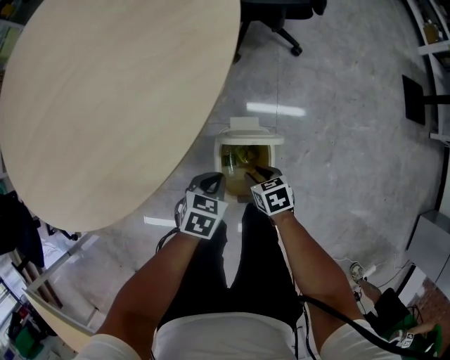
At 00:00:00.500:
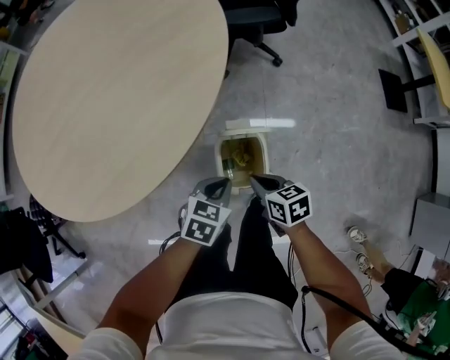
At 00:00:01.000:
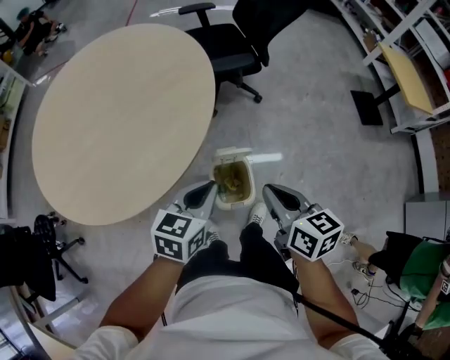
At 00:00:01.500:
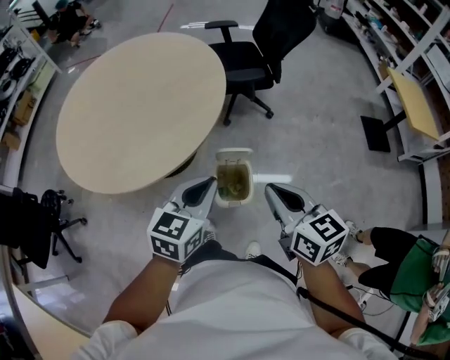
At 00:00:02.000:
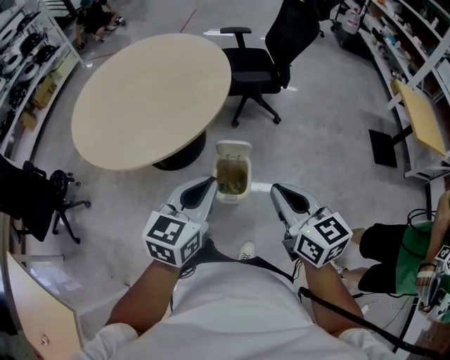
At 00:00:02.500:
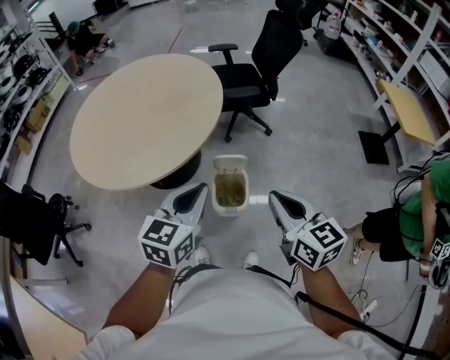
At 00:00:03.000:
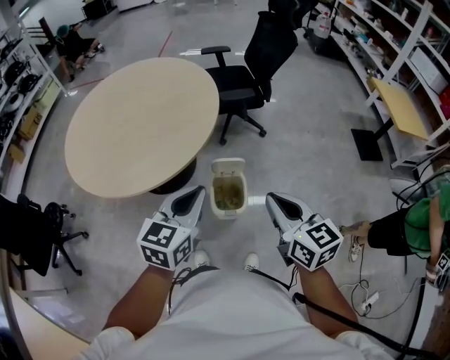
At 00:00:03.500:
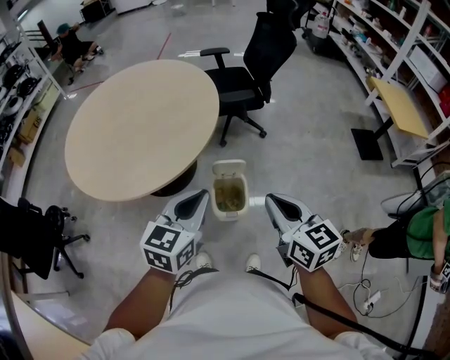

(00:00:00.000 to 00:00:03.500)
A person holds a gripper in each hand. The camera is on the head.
00:00:00.000 - 00:00:02.000: The two grippers go some 50 cm upward. The left gripper points its fingers approximately 40 degrees further upward. Meanwhile the right gripper tips its fingers upward by roughly 50 degrees, and closes.
00:00:02.000 - 00:00:03.500: The grippers make only small movements.

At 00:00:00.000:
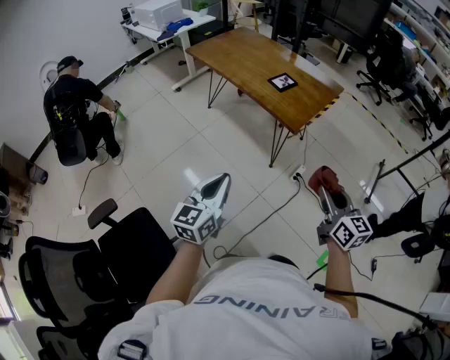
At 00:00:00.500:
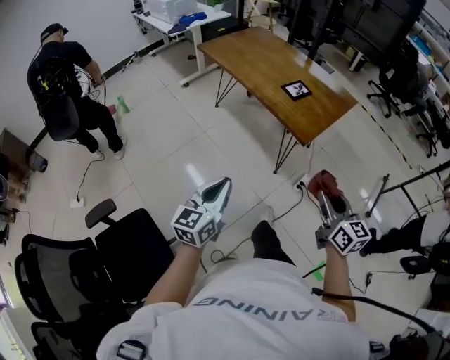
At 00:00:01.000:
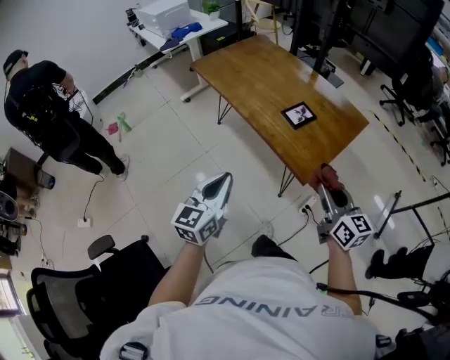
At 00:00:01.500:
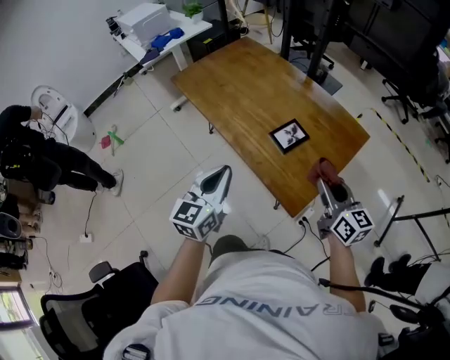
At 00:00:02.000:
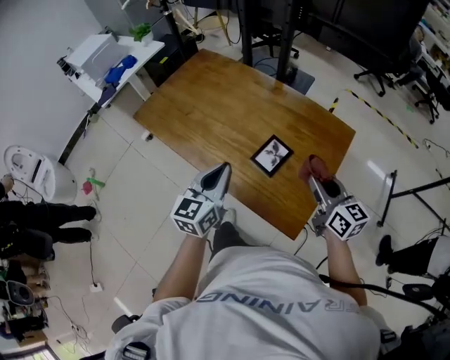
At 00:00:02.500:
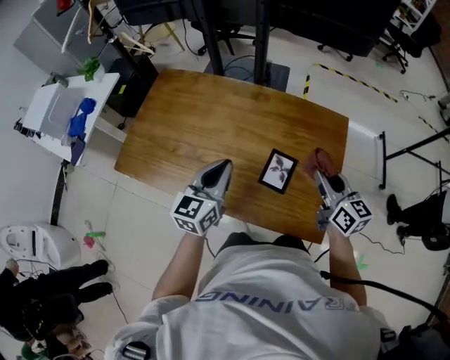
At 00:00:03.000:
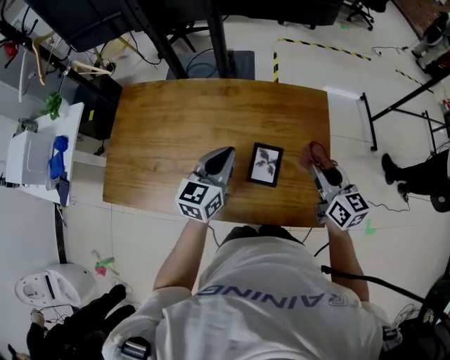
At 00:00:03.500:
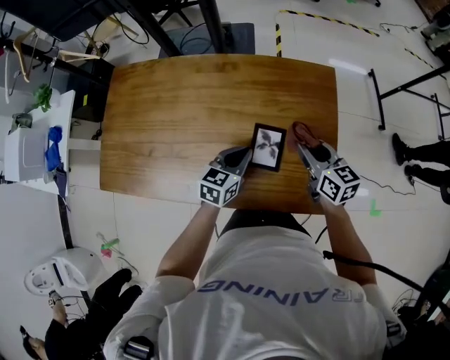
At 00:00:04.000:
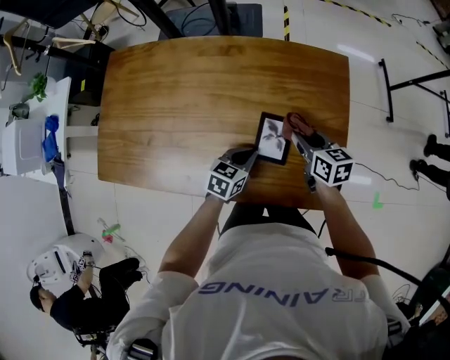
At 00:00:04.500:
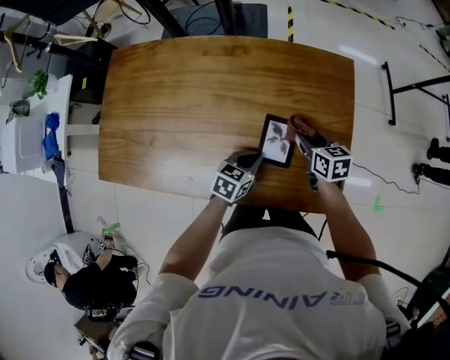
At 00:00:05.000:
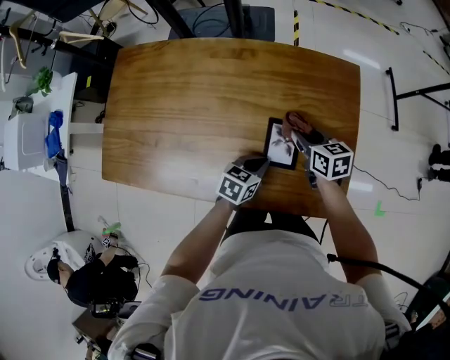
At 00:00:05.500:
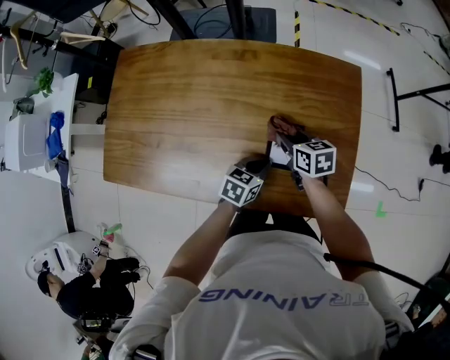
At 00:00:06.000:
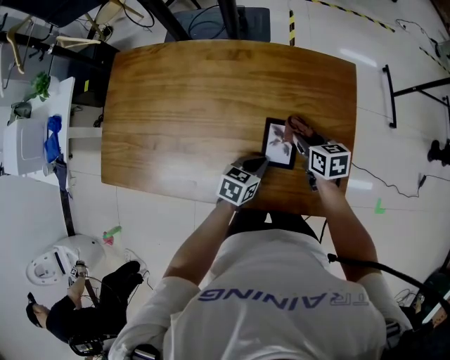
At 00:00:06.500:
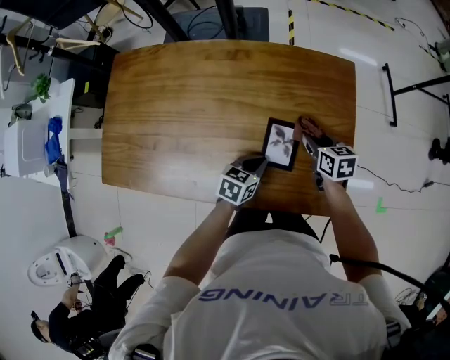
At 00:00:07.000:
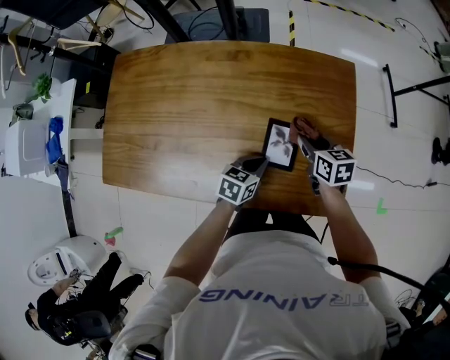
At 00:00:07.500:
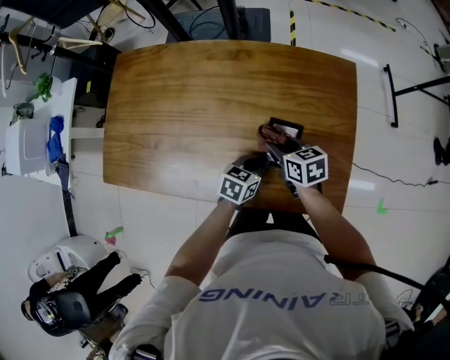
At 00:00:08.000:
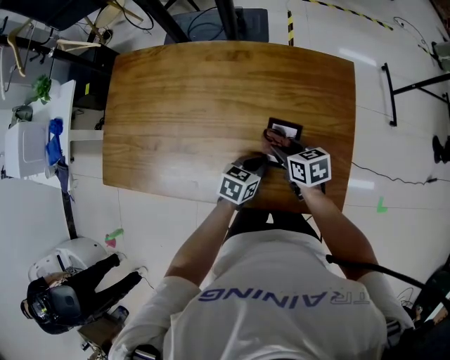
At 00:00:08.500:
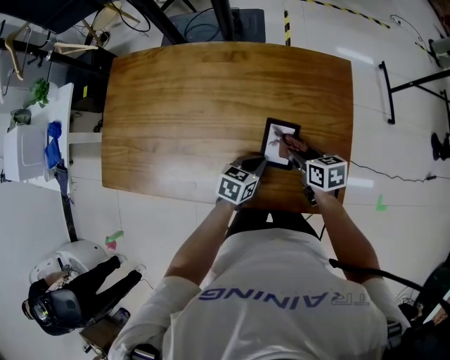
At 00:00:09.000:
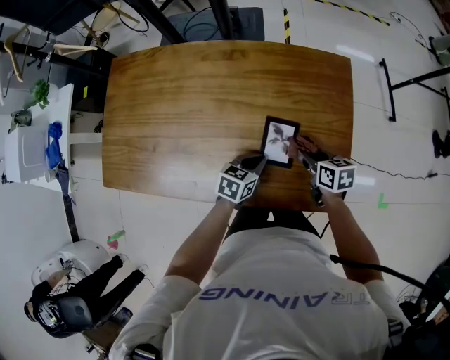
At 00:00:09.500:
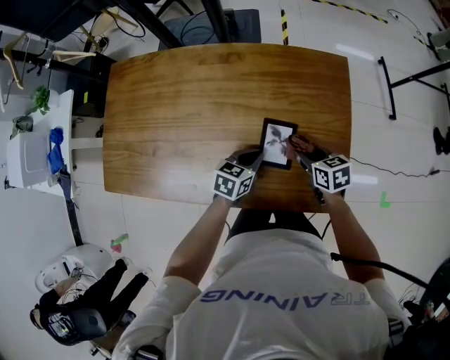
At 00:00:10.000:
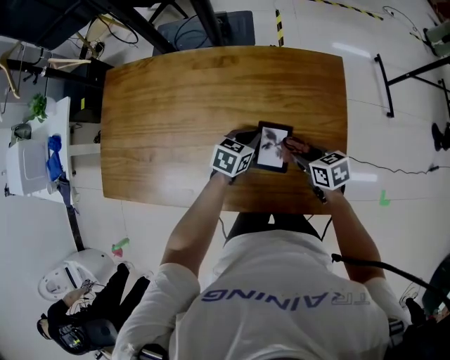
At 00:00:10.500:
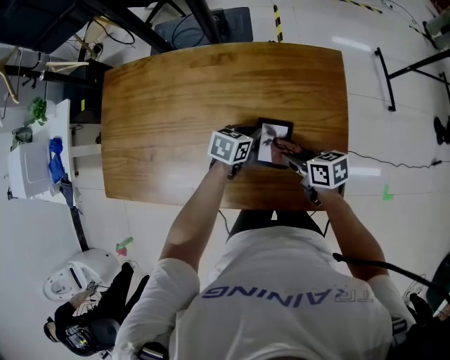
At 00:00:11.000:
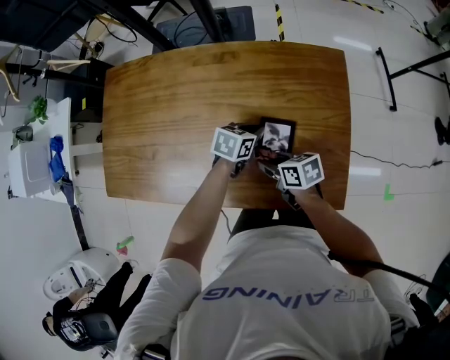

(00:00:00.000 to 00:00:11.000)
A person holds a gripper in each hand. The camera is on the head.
00:00:00.000 - 00:00:02.000: The two grippers travel together, forward, about 60 cm.
00:00:02.000 - 00:00:03.500: The right gripper changes place by about 15 cm, and changes its angle by roughly 30 degrees, while the left gripper ends up roughly 25 cm from where it was, and turns by roughly 50 degrees.
00:00:03.500 - 00:00:05.500: The right gripper shifts roughly 15 cm downward and to the left, and changes its angle by some 20 degrees. Meanwhile the left gripper moves downward, roughly 10 cm.
00:00:05.500 - 00:00:07.500: The right gripper moves about 10 cm to the right and comes back.
00:00:07.500 - 00:00:09.000: The right gripper moves to the right, some 10 cm.
00:00:09.000 - 00:00:11.000: The right gripper moves approximately 15 cm. The left gripper ends up roughly 10 cm from where it was.

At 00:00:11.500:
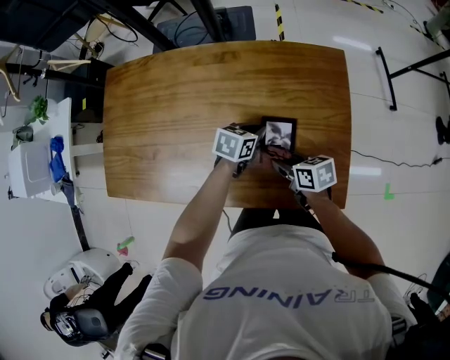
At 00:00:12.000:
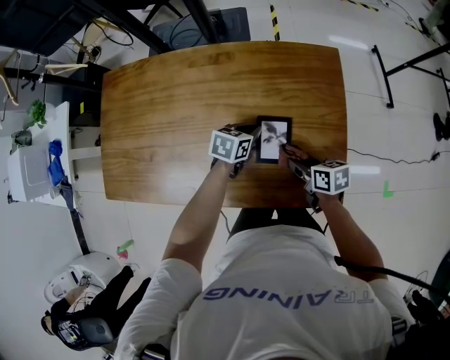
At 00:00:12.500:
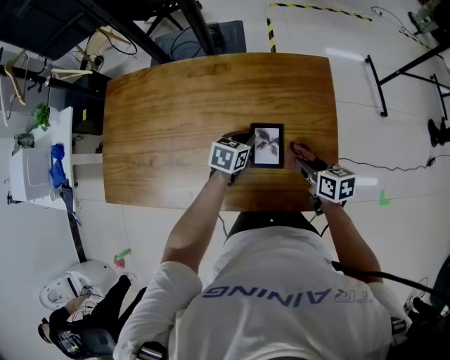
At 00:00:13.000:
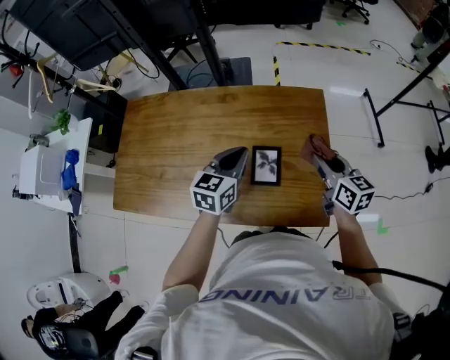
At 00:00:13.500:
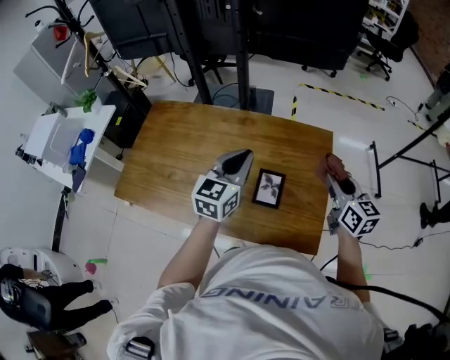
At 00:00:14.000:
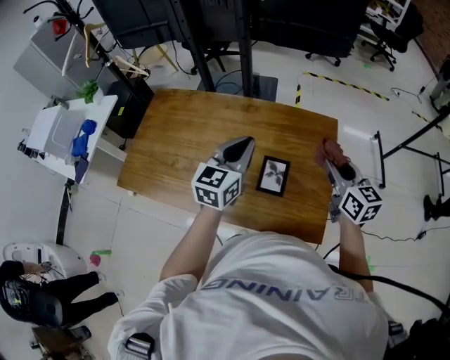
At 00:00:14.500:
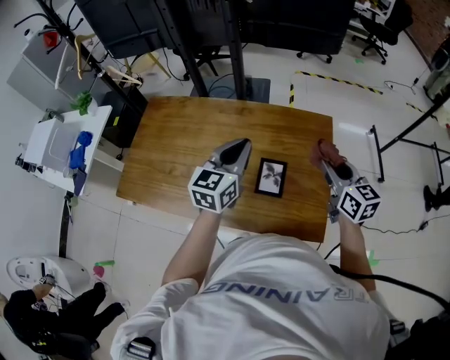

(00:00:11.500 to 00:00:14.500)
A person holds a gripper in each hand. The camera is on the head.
00:00:11.500 - 00:00:13.000: The left gripper heads upward, covering approximately 20 cm, and rotates some 30 degrees. Meanwhile the right gripper goes approximately 25 cm upward and to the right, and changes its angle by about 40 degrees.
00:00:13.000 - 00:00:14.500: Both grippers move upward, about 10 cm.

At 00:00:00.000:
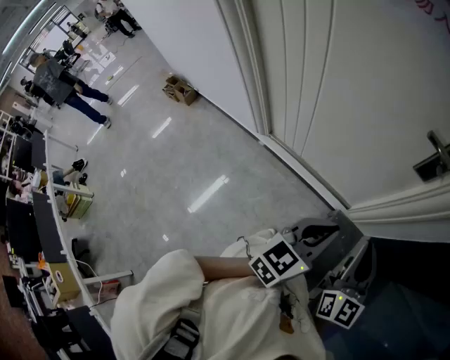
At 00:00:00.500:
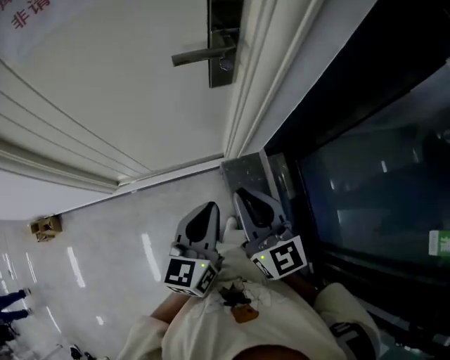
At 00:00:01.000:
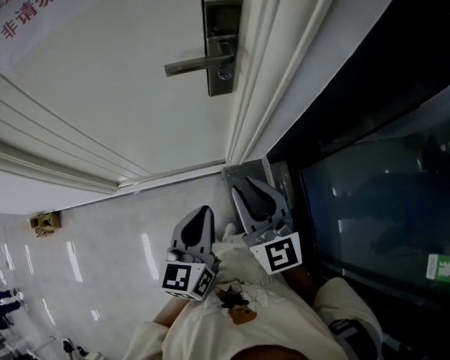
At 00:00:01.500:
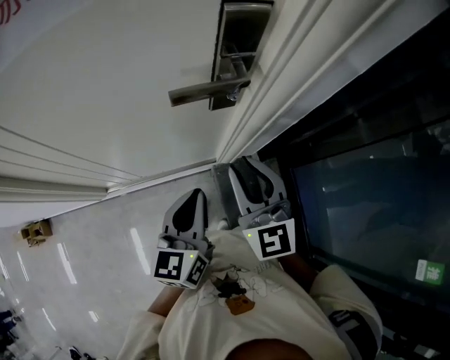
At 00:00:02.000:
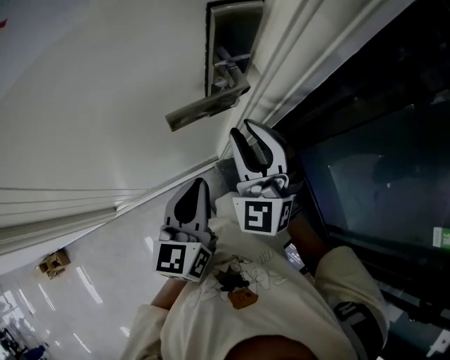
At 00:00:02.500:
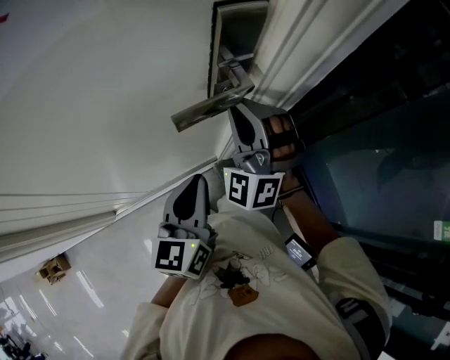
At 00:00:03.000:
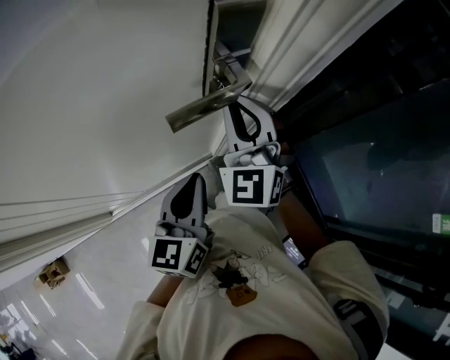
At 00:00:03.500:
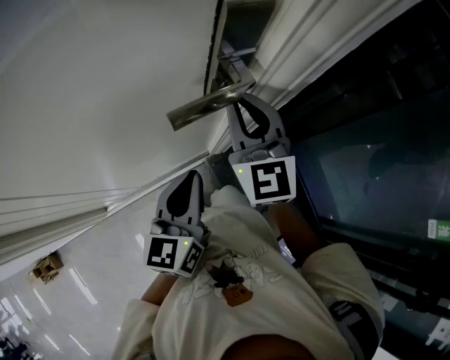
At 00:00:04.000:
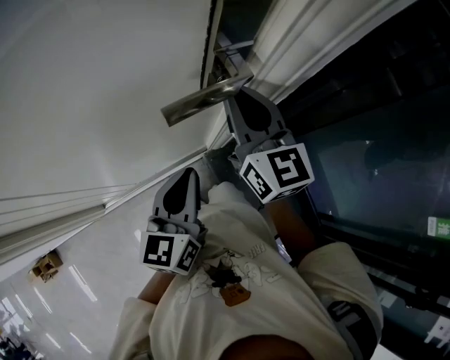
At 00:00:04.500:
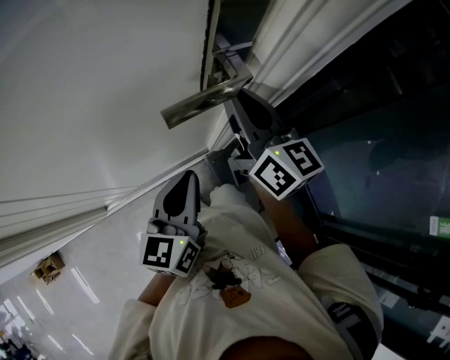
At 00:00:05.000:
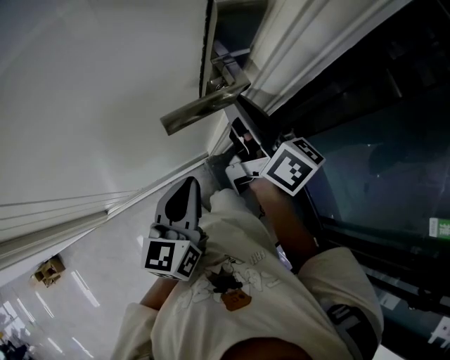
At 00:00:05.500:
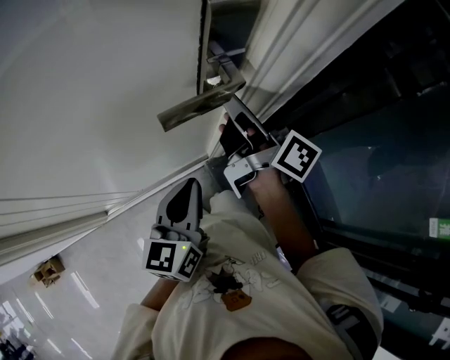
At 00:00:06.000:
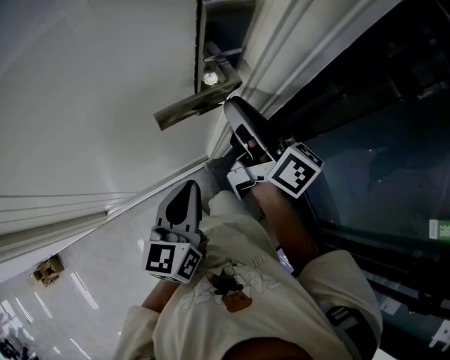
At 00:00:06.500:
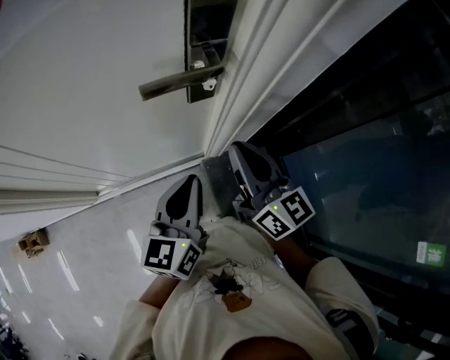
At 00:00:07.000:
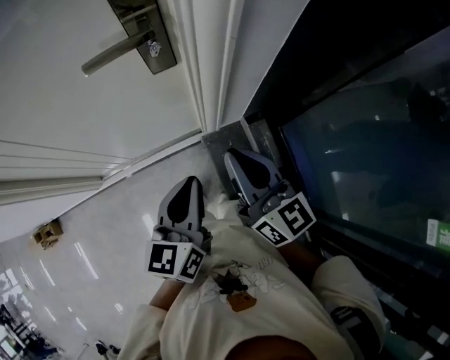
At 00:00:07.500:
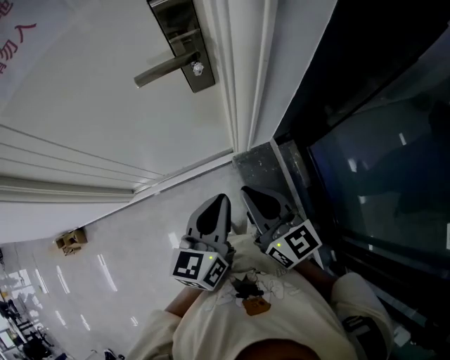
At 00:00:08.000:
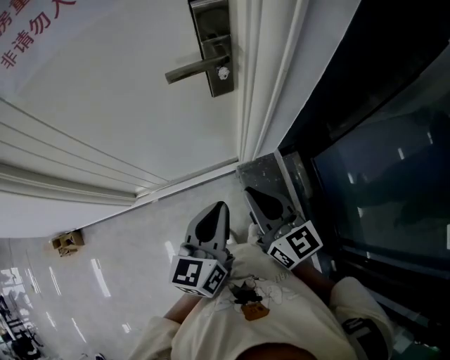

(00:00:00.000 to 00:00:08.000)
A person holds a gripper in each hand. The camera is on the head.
00:00:00.000 - 00:00:02.000: The left gripper shifts roughly 25 cm forward and to the left. The right gripper is displaced forward by roughly 25 cm, rotates around the line of its fingers by some 50 degrees, counterclockwise from behind, and opens its fingers.
00:00:02.000 - 00:00:04.000: The right gripper goes about 5 cm forward, twists roughly 50 degrees clockwise, seen from behind, and closes.
00:00:04.000 - 00:00:06.000: The right gripper rotates around the line of its fingers by about 40 degrees, clockwise from behind.
00:00:06.000 - 00:00:08.000: The left gripper moves backward, some 15 cm. Meanwhile the right gripper shifts about 25 cm backward, swivels roughly 30 degrees, and closes its fingers.
